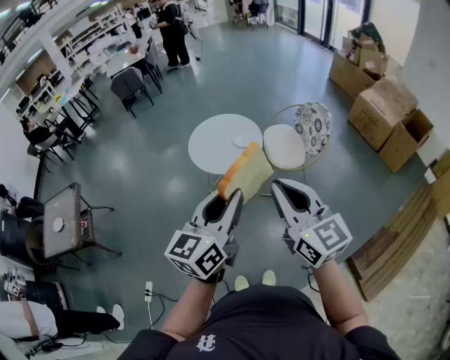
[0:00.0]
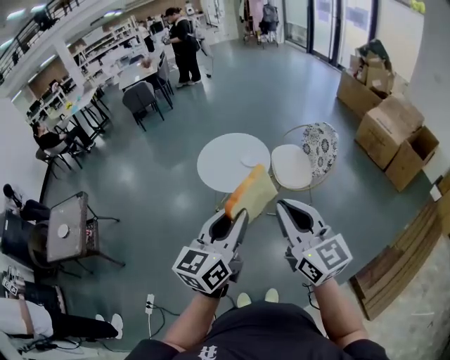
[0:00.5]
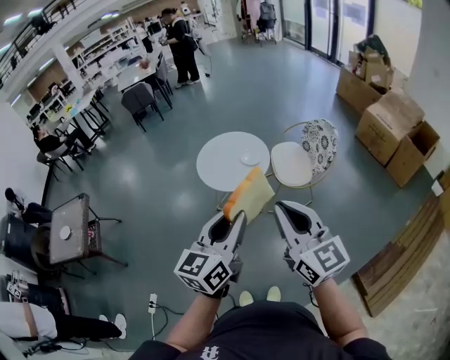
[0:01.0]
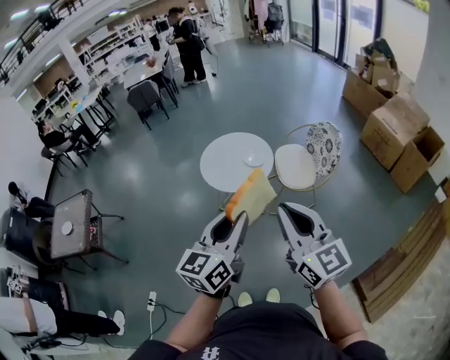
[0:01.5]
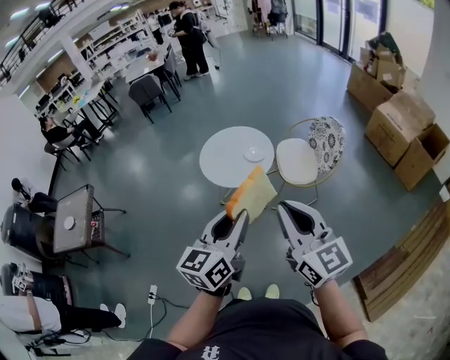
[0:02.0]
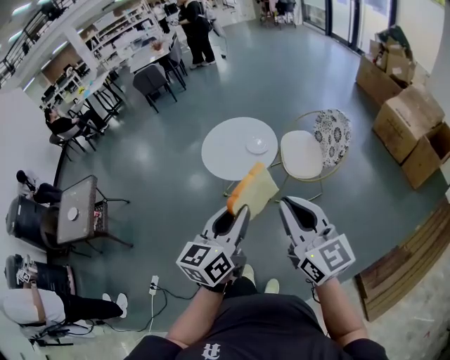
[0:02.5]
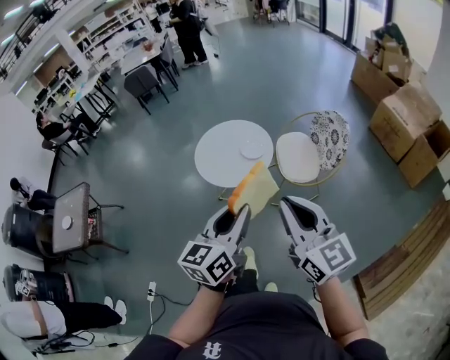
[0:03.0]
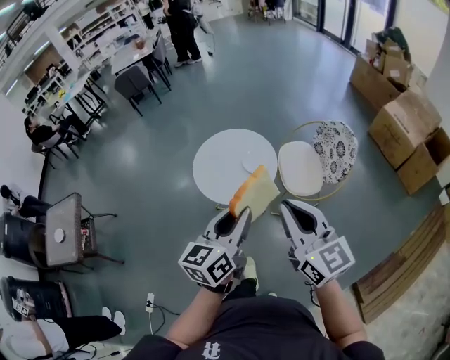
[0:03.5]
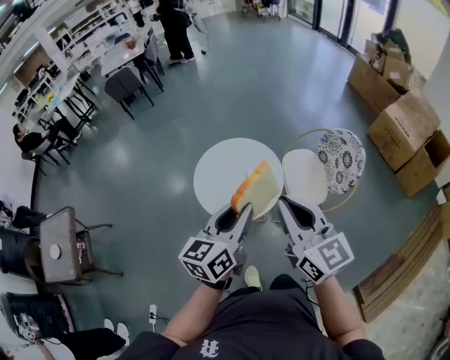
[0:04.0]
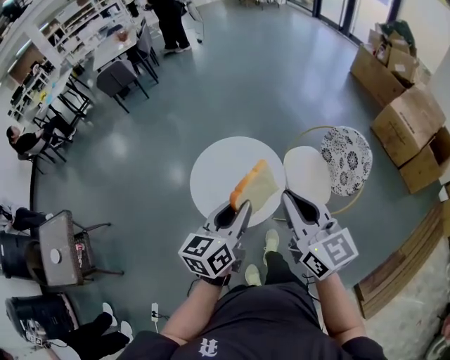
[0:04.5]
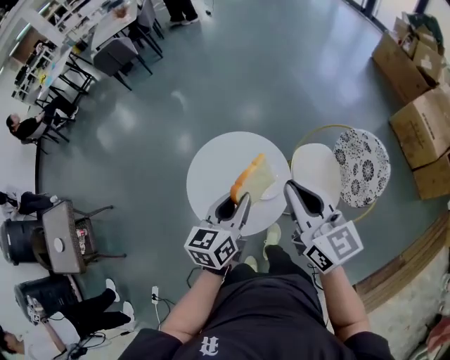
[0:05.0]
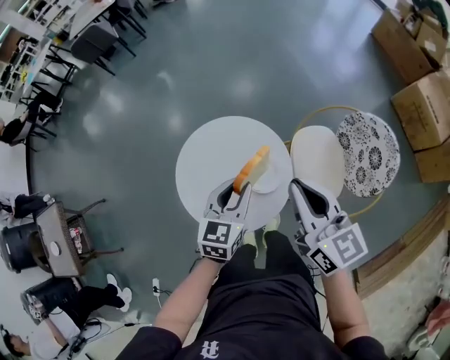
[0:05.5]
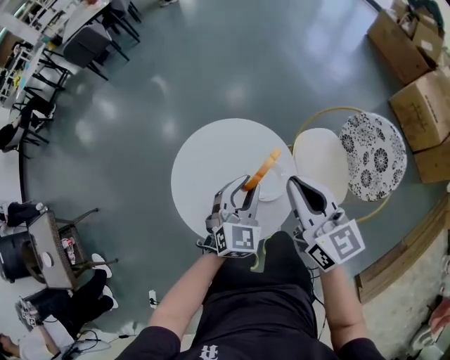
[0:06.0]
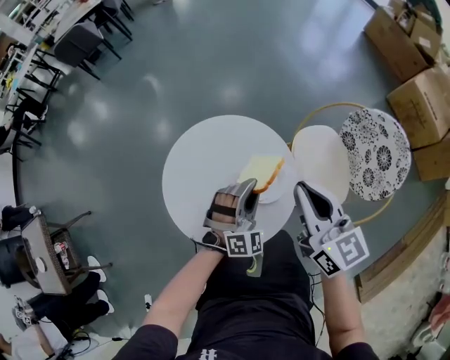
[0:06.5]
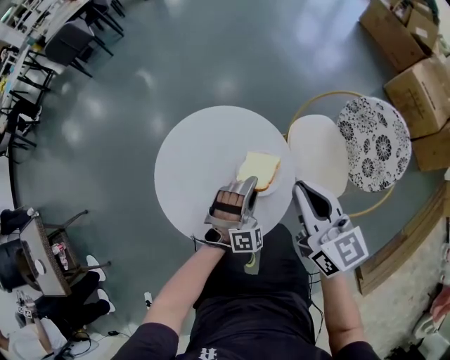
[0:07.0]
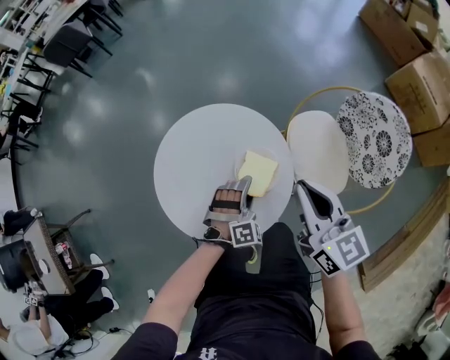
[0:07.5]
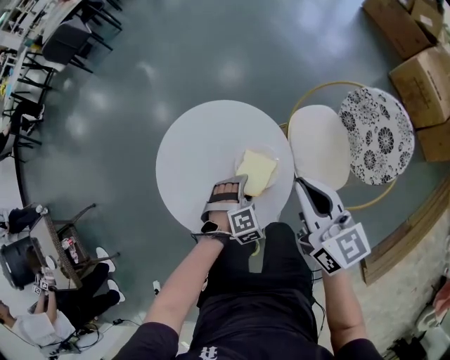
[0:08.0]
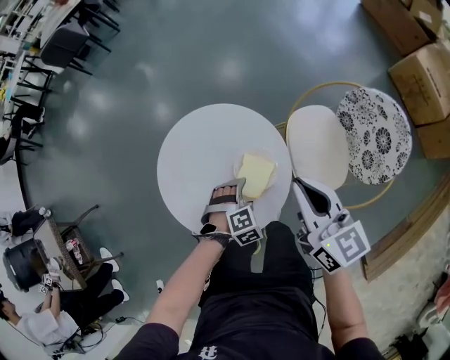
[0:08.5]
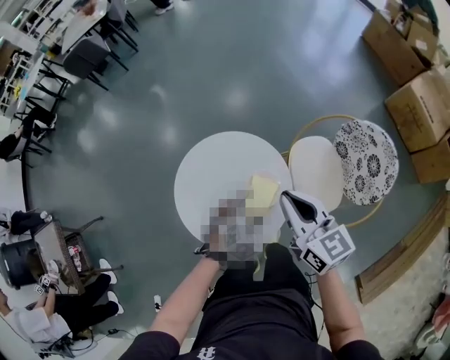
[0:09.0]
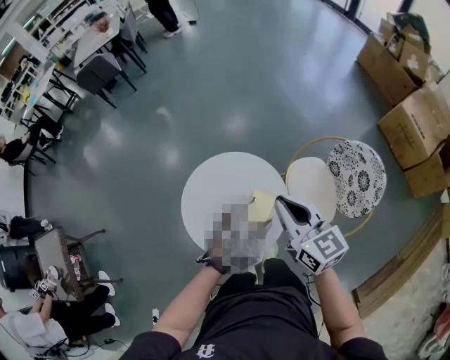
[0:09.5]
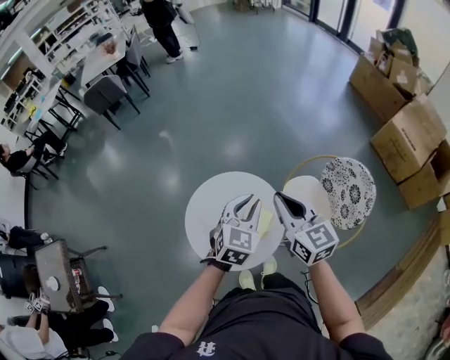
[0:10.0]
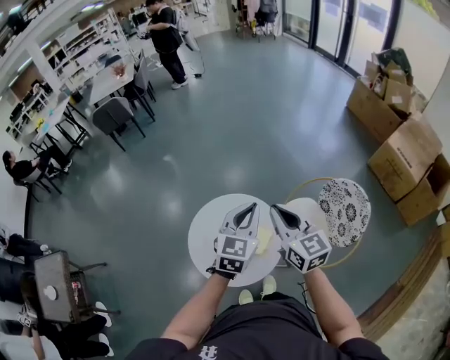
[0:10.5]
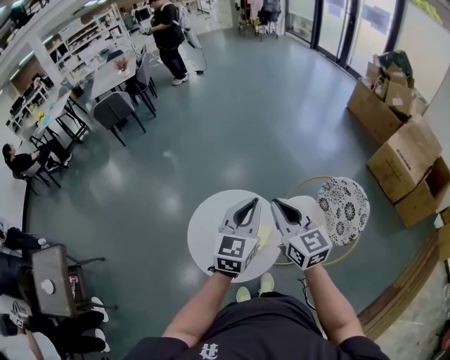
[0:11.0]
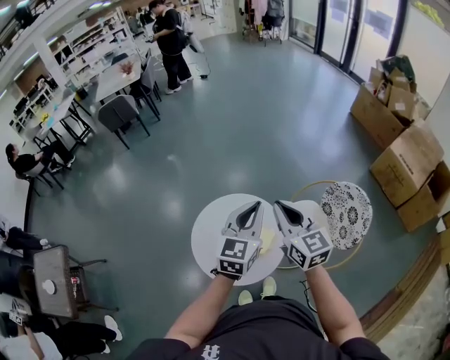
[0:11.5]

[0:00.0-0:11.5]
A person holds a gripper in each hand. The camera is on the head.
0:00.0 to 0:02.0: There are only small adjustments of the grippers.
0:02.0 to 0:04.0: Both grippers travel together forward, about 30 cm.
0:04.0 to 0:06.0: The right gripper moves forward and downward, about 35 cm. Meanwhile the left gripper is displaced downward and forward by about 40 cm, and twists approximately 50 degrees clockwise, seen from behind.
0:06.0 to 0:07.5: The left gripper moves downward, approximately 20 cm, rolls clockwise, seen from behind, by some 40 degrees, and opens its fingers; the right gripper goes some 5 cm downward.
0:07.5 to 0:09.5: The right gripper heads upward, covering roughly 15 cm. Meanwhile the left gripper heads upward, covering some 25 cm, and changes its angle by roughly 40 degrees.
0:09.5 to 0:11.5: The left gripper goes about 20 cm upward, points its fingers approximately 40 degrees further upward, and closes; the right gripper travels upward by some 10 cm.

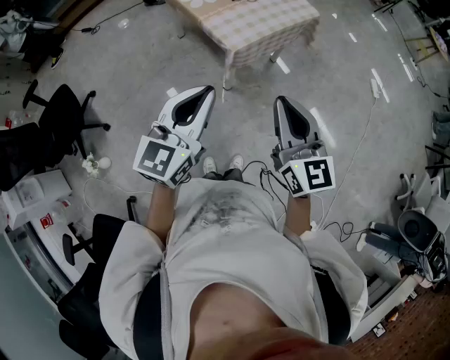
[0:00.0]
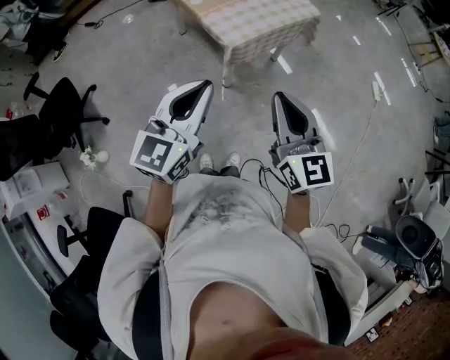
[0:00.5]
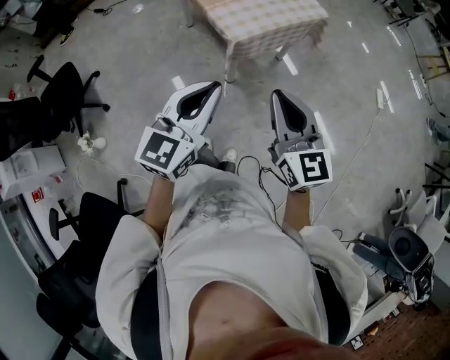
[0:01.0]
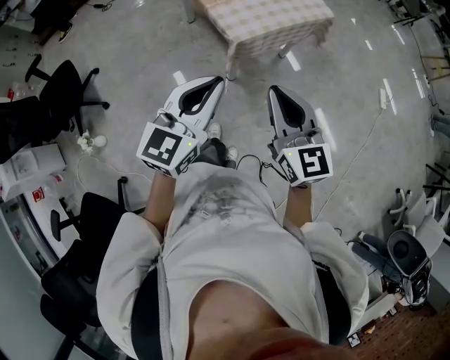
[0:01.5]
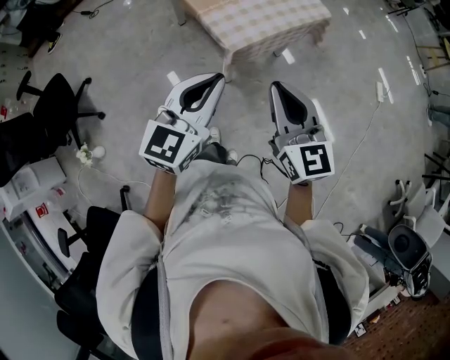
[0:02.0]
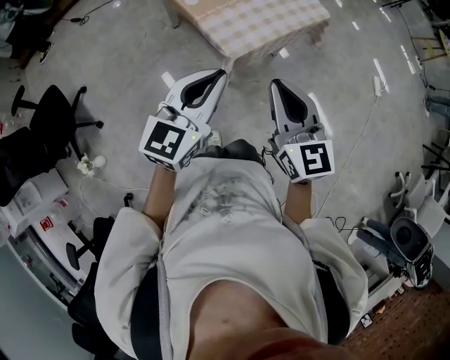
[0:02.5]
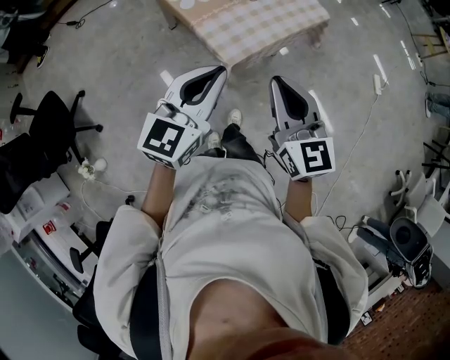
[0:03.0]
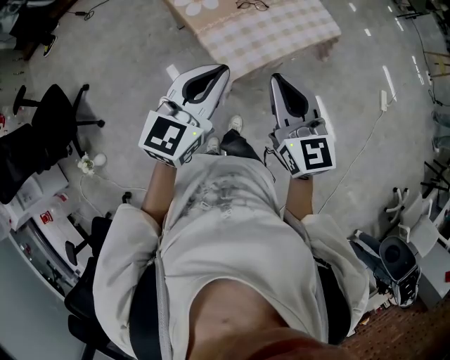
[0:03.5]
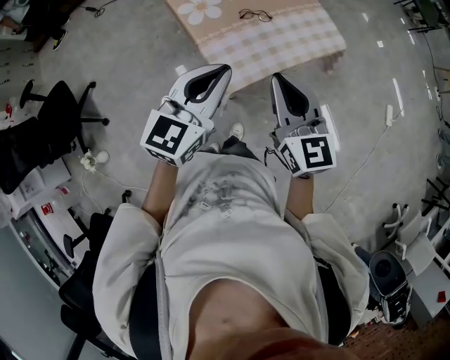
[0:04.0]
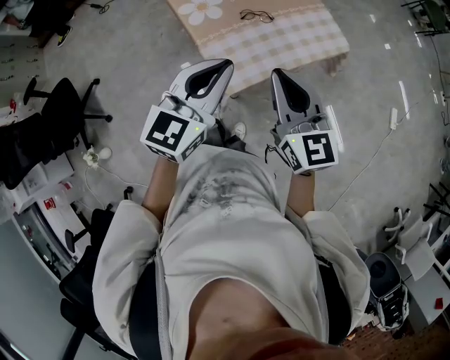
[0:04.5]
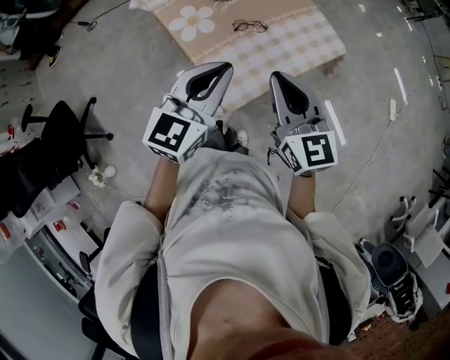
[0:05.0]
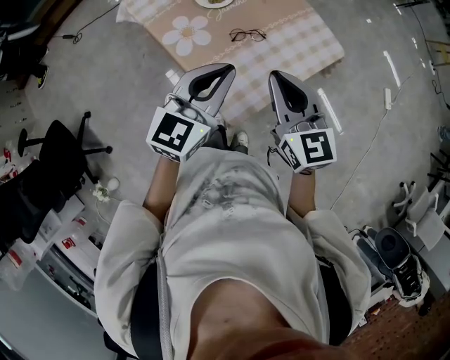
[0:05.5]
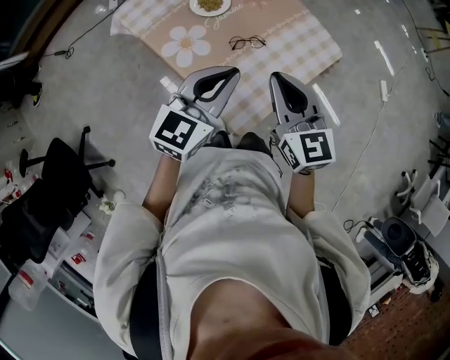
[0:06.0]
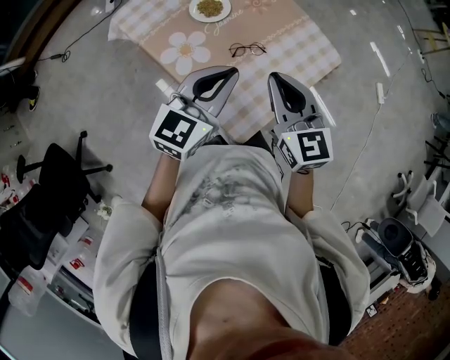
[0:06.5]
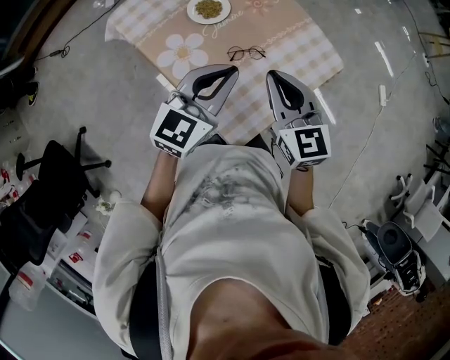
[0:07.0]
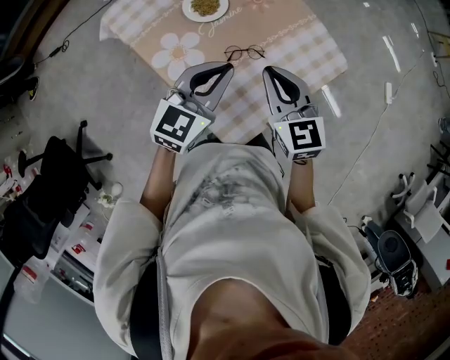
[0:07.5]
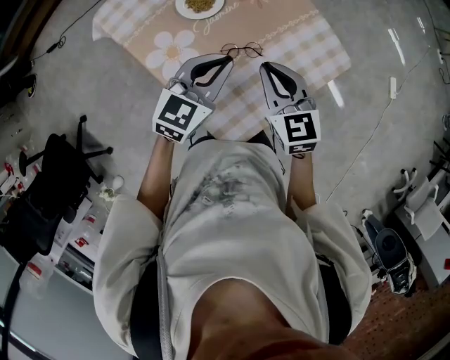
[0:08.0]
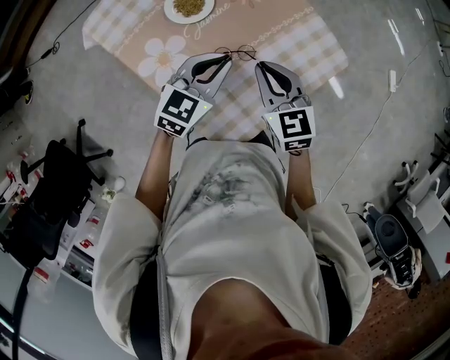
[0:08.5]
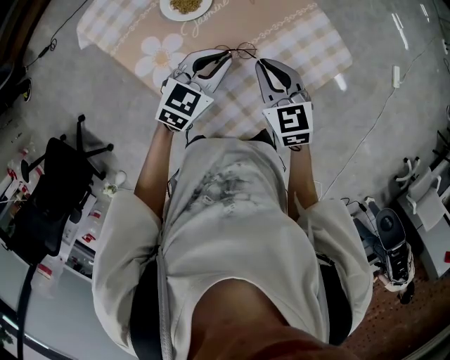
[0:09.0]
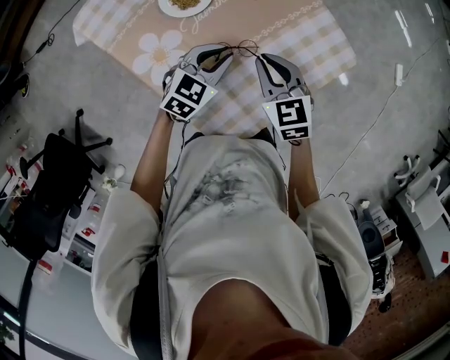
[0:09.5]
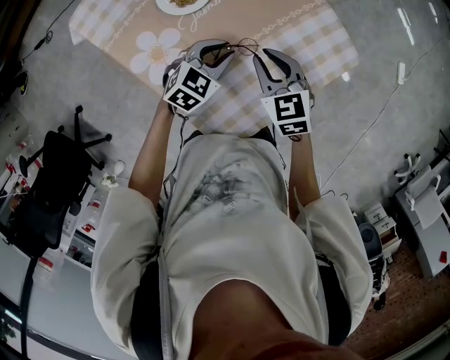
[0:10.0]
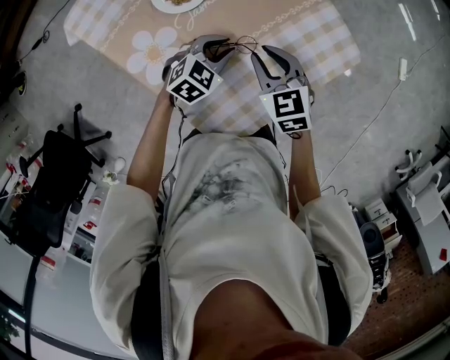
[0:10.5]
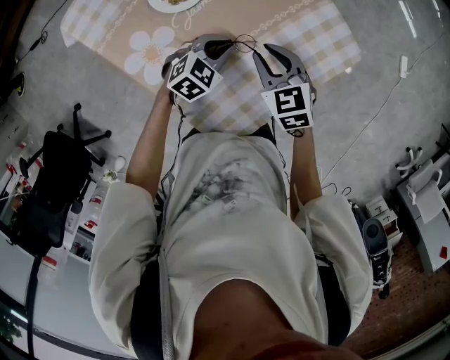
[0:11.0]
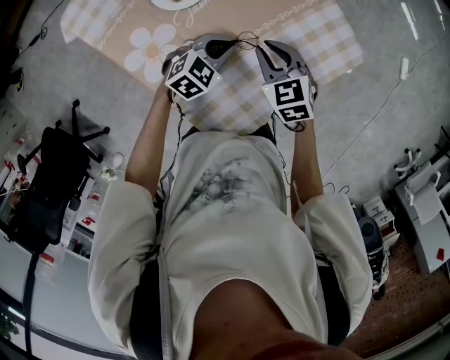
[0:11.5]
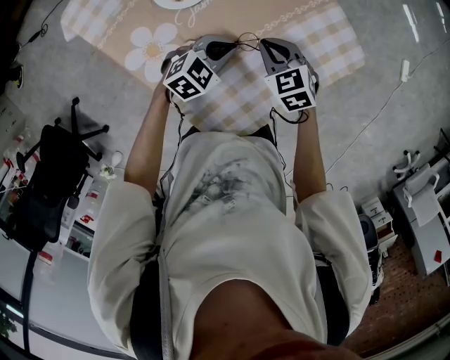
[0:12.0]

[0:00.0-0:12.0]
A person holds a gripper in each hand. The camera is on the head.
0:00.0 to 0:02.0: Both grippers move forward, roughly 10 cm.
0:02.0 to 0:04.0: The grippers both shift forward by about 20 cm.
0:04.0 to 0:06.0: Both grippers move forward, roughly 15 cm.
0:06.0 to 0:08.0: Both grippers travel together forward and downward, some 15 cm.
0:08.0 to 0:10.0: The left gripper travels downward by about 15 cm, and changes its angle by about 20 degrees; the right gripper goes about 10 cm downward and forward.
0:10.0 to 0:12.0: The right gripper shifts about 10 cm downward.

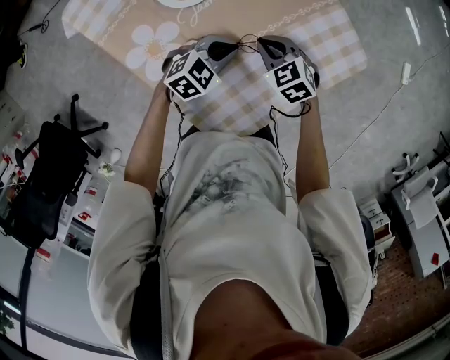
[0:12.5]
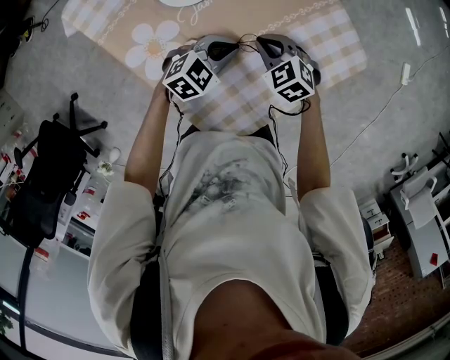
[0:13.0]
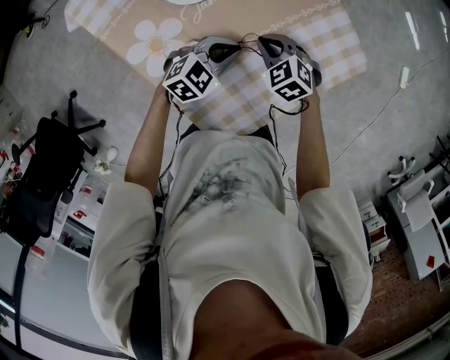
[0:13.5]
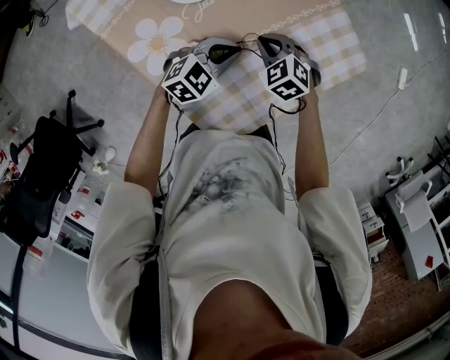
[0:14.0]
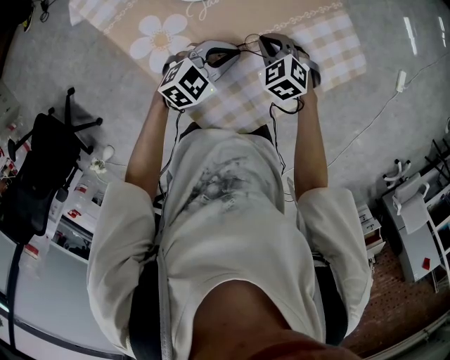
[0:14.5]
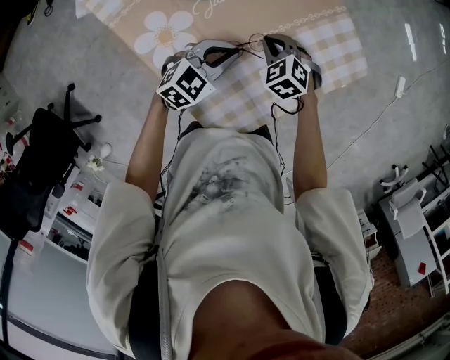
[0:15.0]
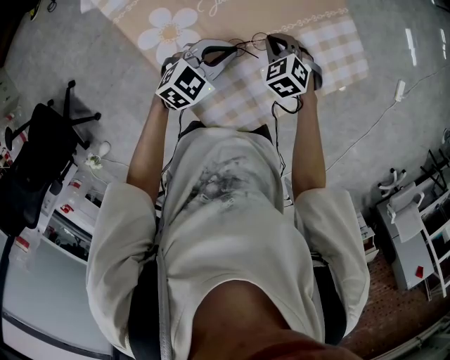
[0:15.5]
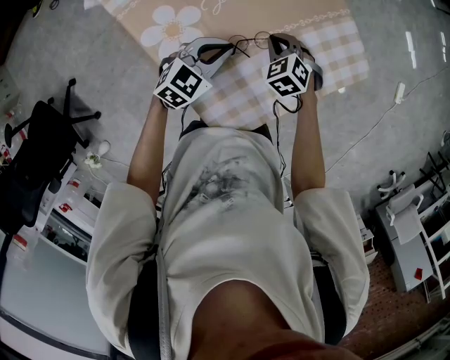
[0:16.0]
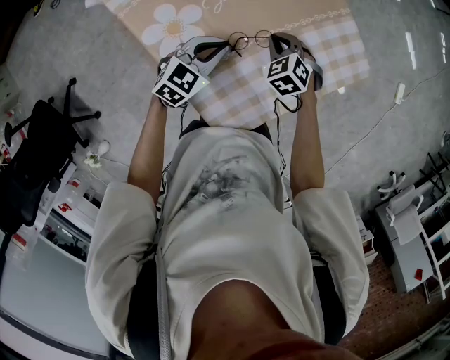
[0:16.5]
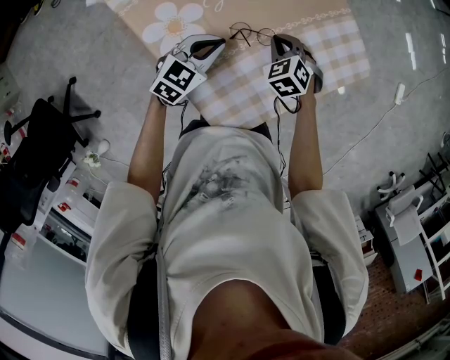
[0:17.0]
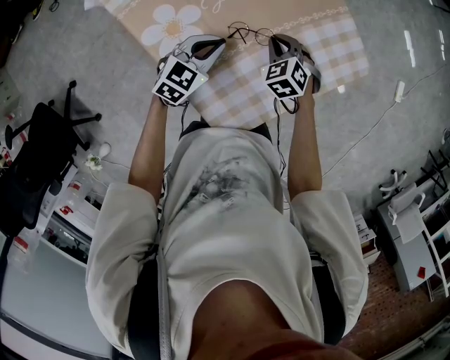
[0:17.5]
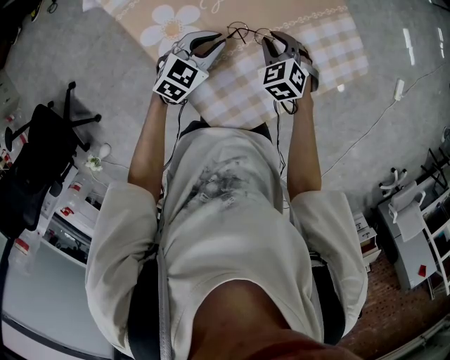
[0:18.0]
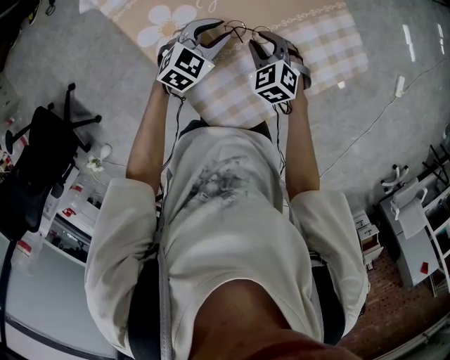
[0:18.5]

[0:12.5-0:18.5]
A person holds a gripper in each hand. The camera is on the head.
0:12.5 to 0:14.5: The grippers move only a little.
0:14.5 to 0:16.5: The left gripper shifts approximately 5 cm to the left.
0:16.5 to 0:18.5: The right gripper opens its fingers; the left gripper opens its fingers.
